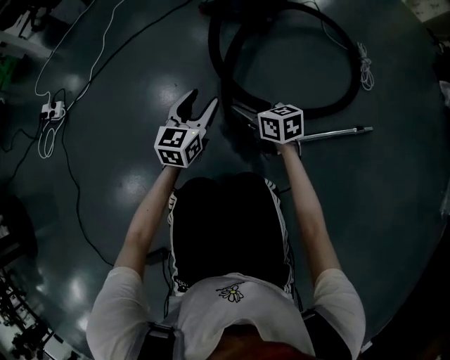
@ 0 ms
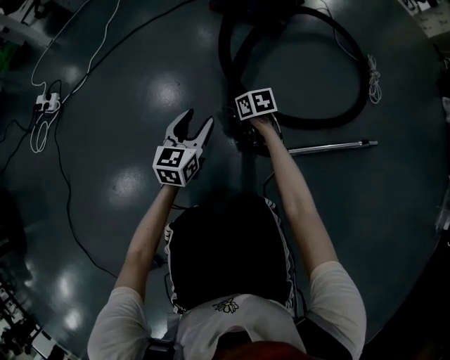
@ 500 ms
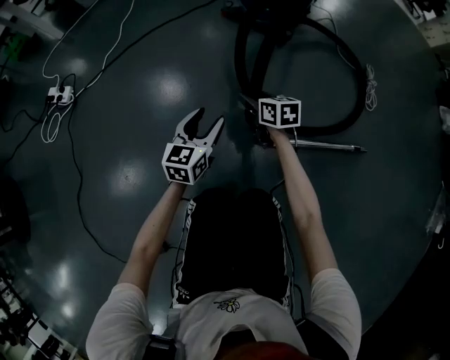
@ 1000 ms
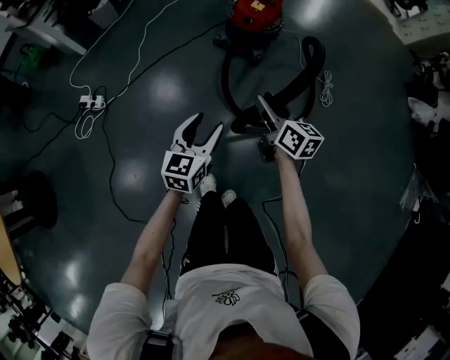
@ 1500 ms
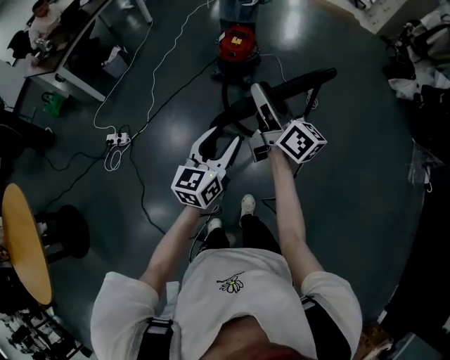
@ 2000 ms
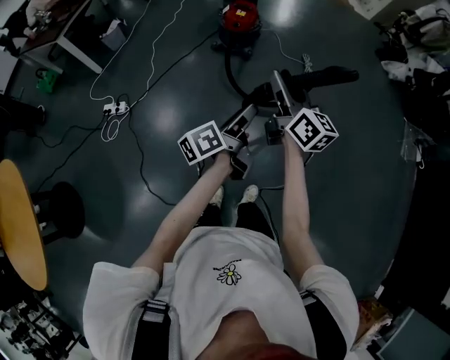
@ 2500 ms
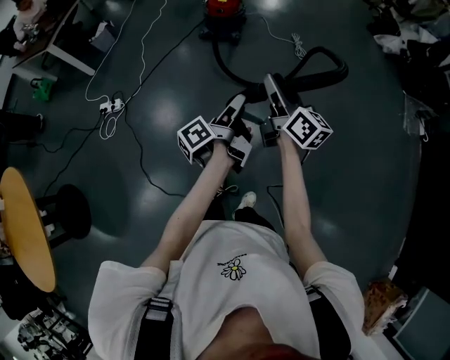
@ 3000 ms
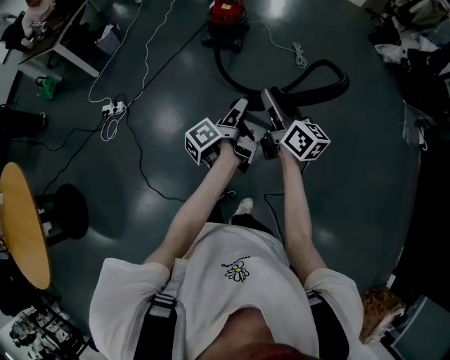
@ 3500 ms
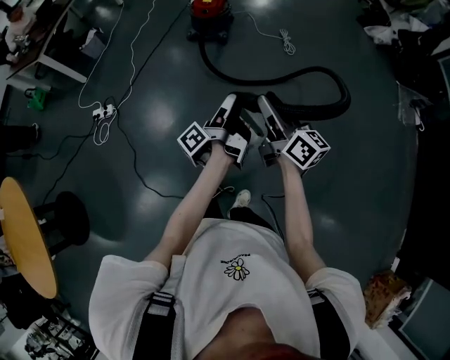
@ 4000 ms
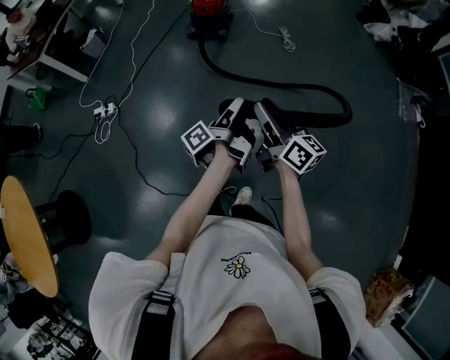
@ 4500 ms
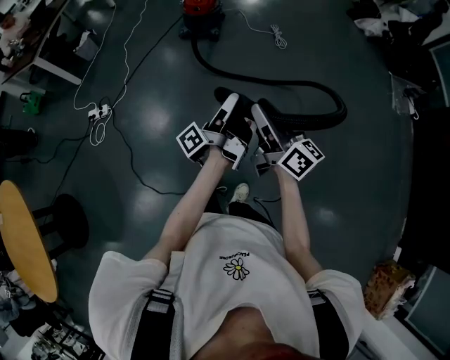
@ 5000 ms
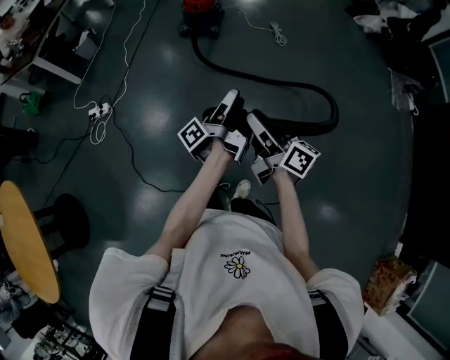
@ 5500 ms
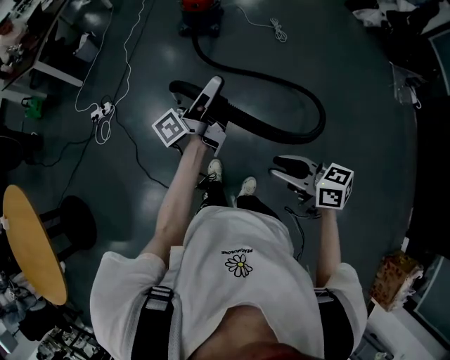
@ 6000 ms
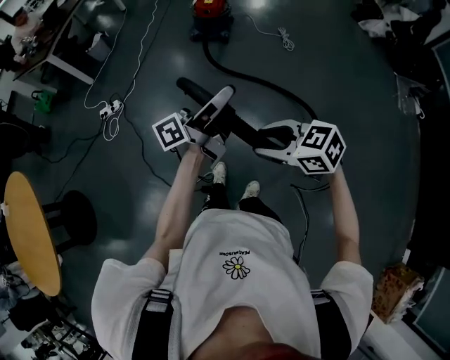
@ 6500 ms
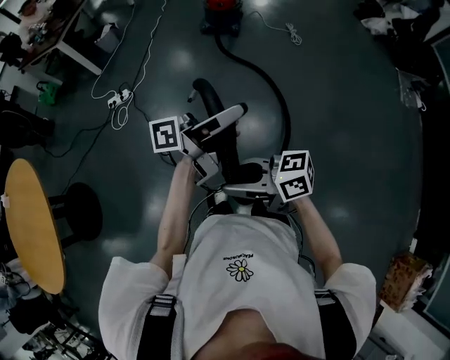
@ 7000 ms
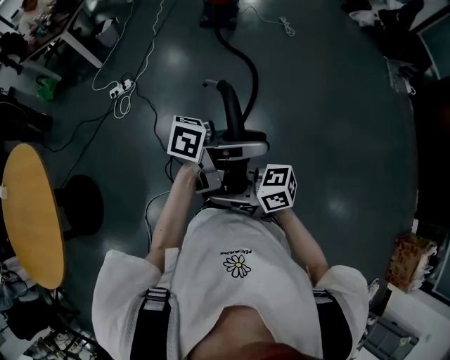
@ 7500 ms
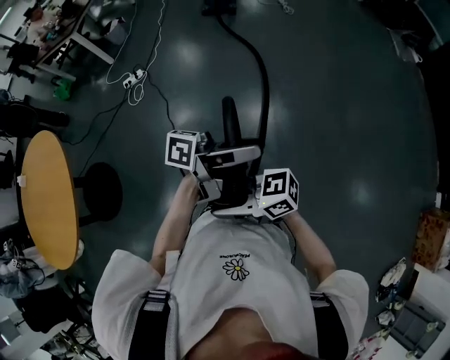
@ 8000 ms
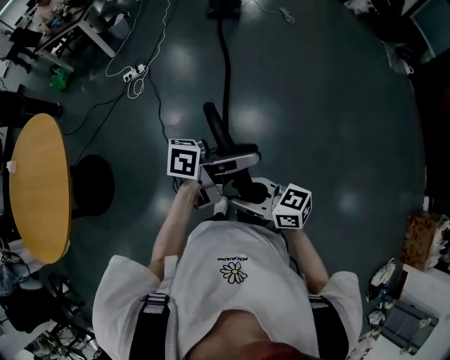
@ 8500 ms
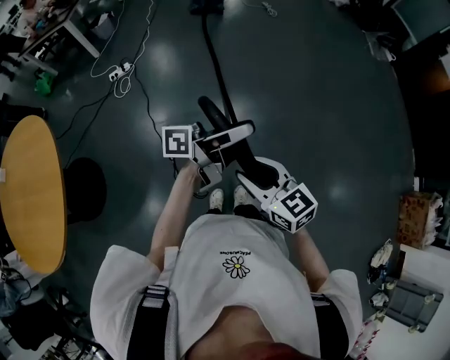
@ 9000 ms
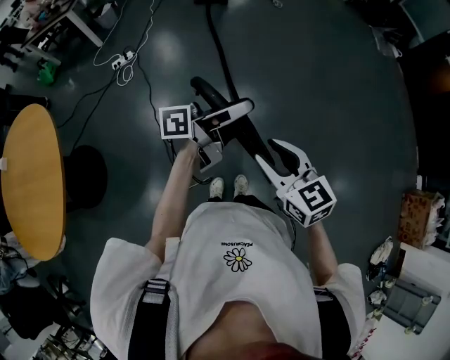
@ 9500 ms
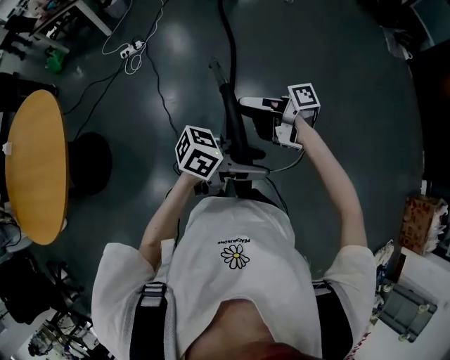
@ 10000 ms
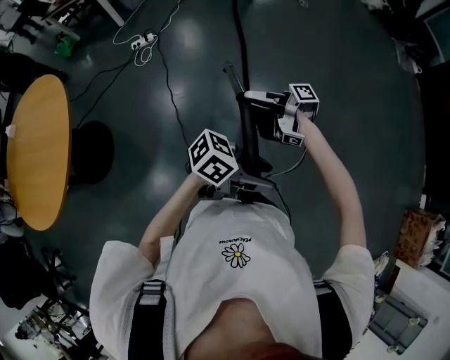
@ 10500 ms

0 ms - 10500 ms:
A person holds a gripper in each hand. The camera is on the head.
0 ms - 2000 ms: The grippers both shift upward by roughly 80 cm. The right gripper tips its fingers upward by approximately 40 degrees.
2000 ms - 4000 ms: The left gripper is displaced backward by roughly 20 cm, and rotates around the line of its fingers by approximately 90 degrees, counterclockwise from behind, while the right gripper shifts roughly 30 cm backward.
4000 ms - 6500 ms: The right gripper shifts roughly 25 cm backward and to the left, and angles its fingers downward, by approximately 40 degrees; the left gripper shifts about 20 cm upward and backward, and turns by some 40 degrees.
6500 ms - 8500 ms: The pair of grippers is taken roughly 70 cm. The left gripper changes its angle by roughly 40 degrees. Meanwhile the right gripper swivels approximately 30 degrees.
8500 ms - 10500 ms: The left gripper changes place by roughly 20 cm, and changes its angle by roughly 30 degrees, while the right gripper ends up roughly 15 cm from where it was, and twists about 70 degrees clockwise, seen from behind.

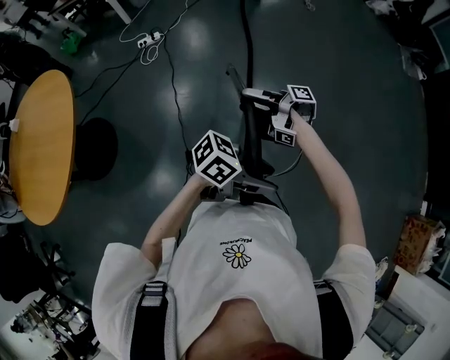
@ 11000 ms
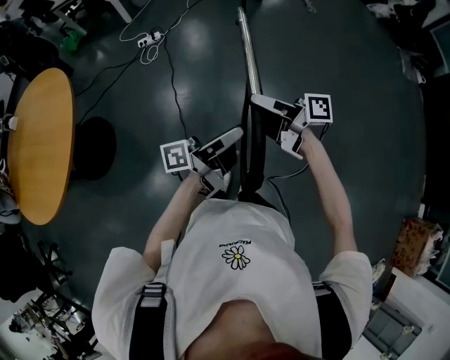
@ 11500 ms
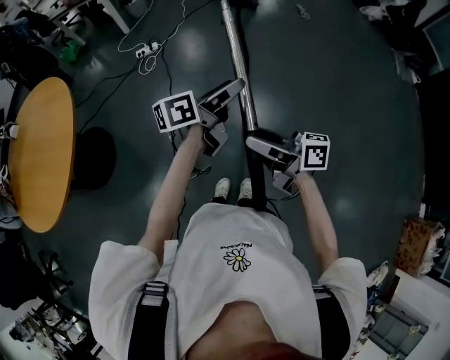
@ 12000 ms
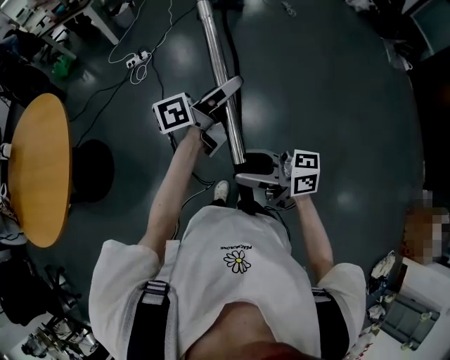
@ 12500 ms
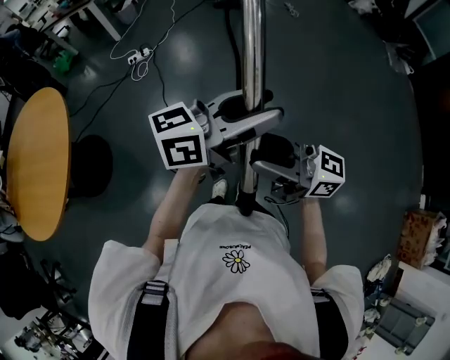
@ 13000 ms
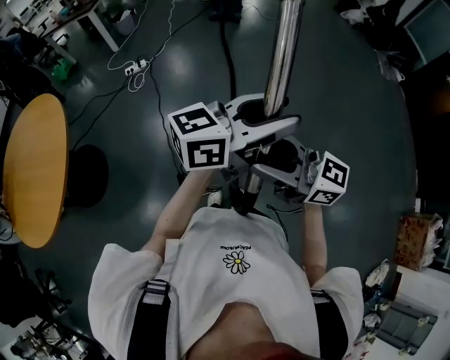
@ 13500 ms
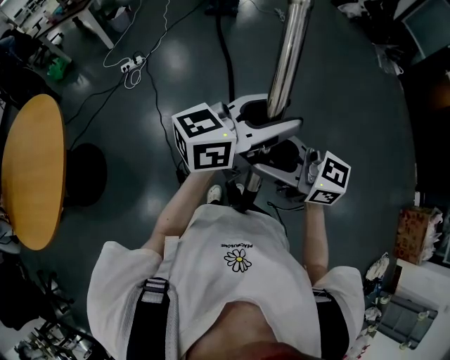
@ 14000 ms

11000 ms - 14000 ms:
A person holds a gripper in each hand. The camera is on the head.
11000 ms - 12500 ms: The right gripper ends up some 20 cm from where it was, and twists approximately 70 degrees counterclockwise, seen from behind. The left gripper changes place by about 30 cm, and swivels some 60 degrees.
12500 ms - 14000 ms: The left gripper ends up some 20 cm from where it was, and changes its angle by about 40 degrees. The right gripper travels upward by some 10 cm, and rotates about 30 degrees.

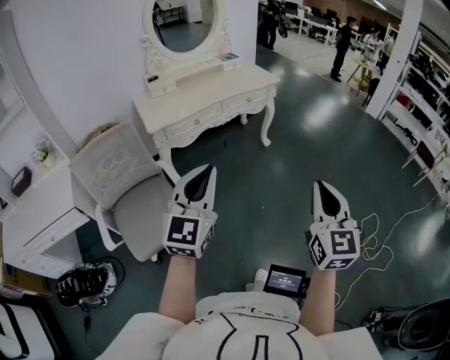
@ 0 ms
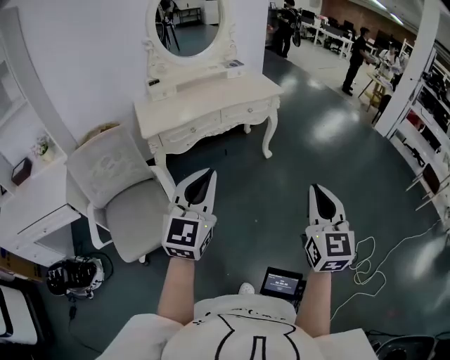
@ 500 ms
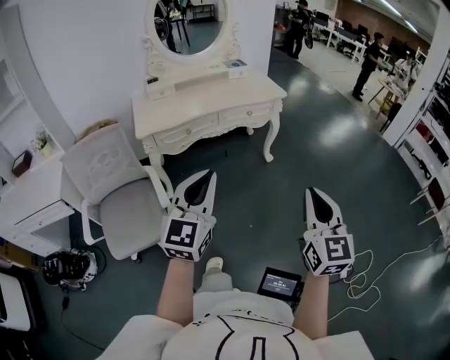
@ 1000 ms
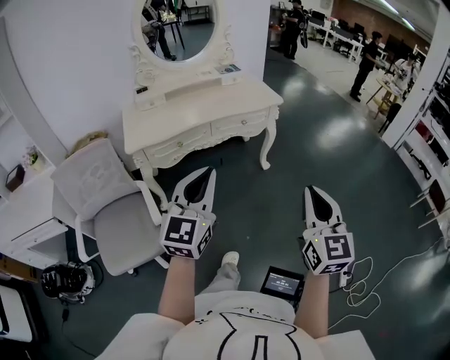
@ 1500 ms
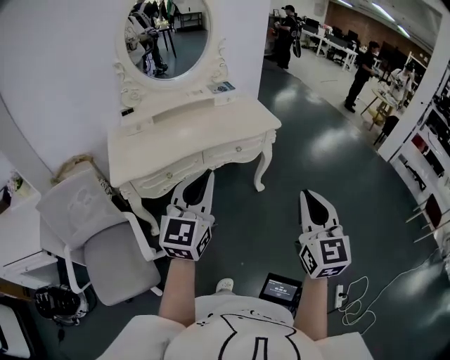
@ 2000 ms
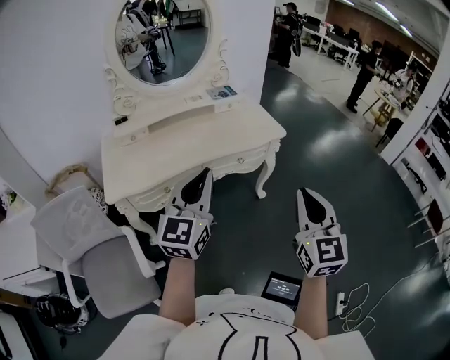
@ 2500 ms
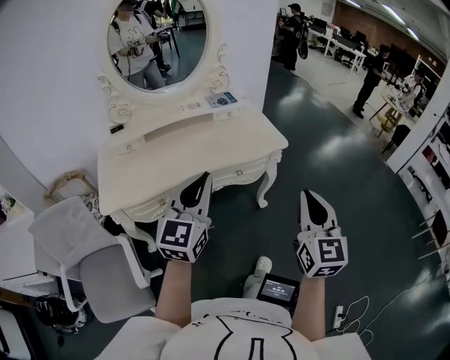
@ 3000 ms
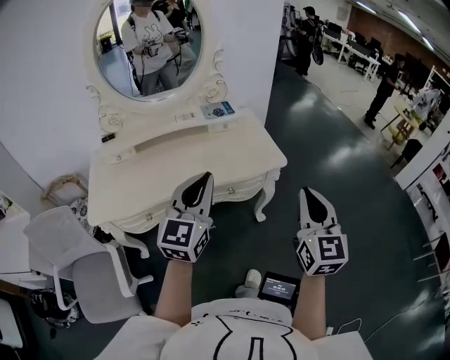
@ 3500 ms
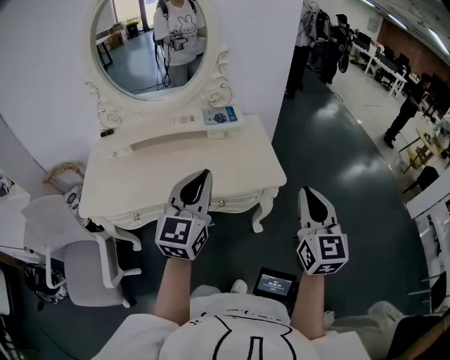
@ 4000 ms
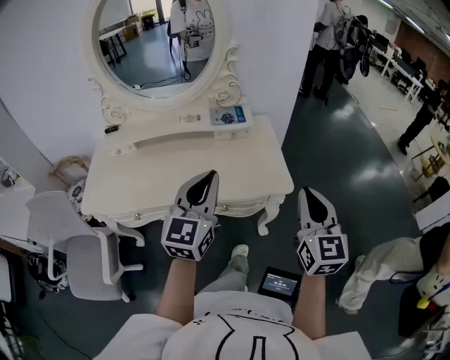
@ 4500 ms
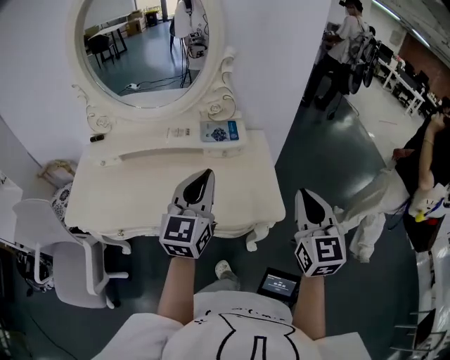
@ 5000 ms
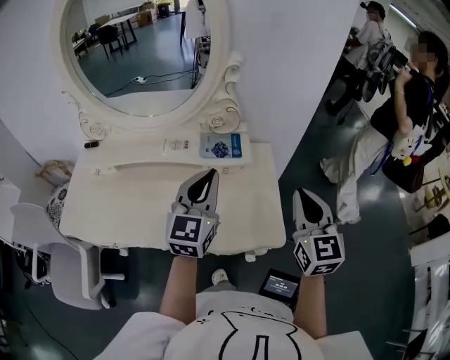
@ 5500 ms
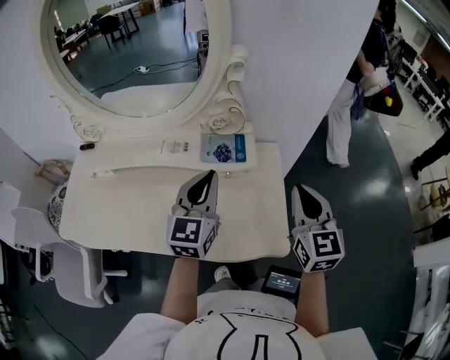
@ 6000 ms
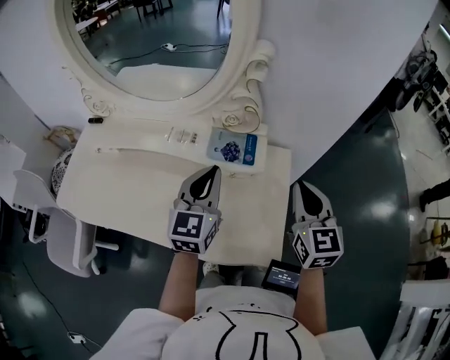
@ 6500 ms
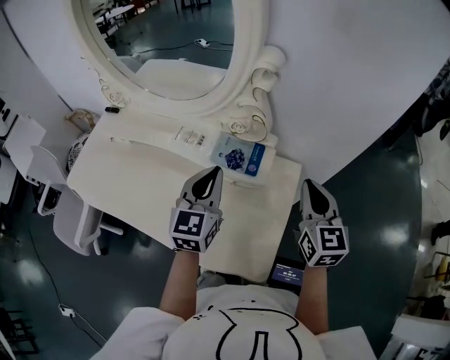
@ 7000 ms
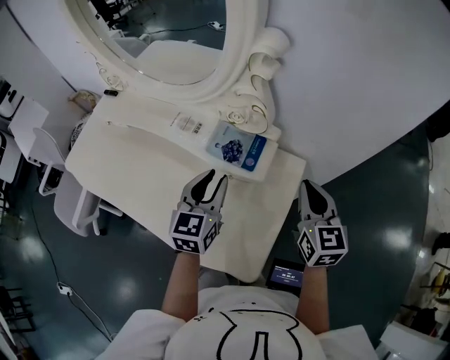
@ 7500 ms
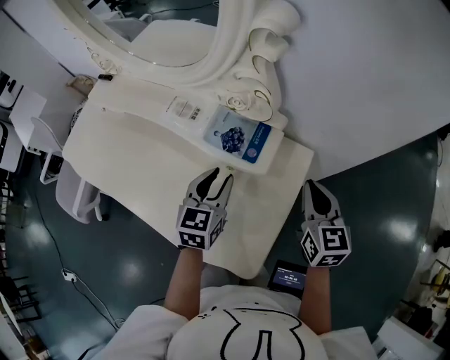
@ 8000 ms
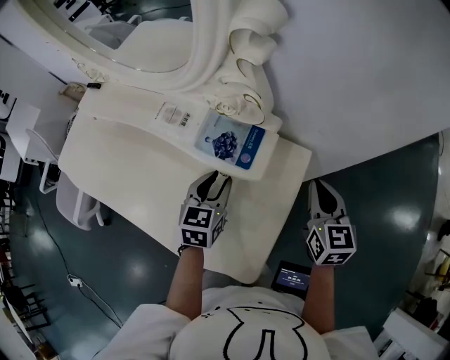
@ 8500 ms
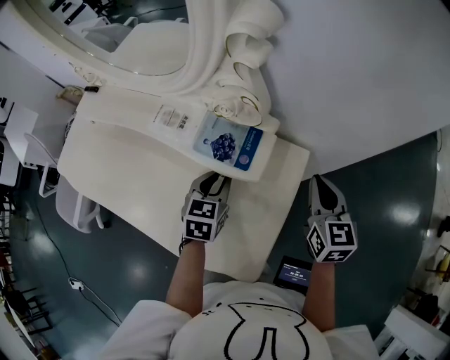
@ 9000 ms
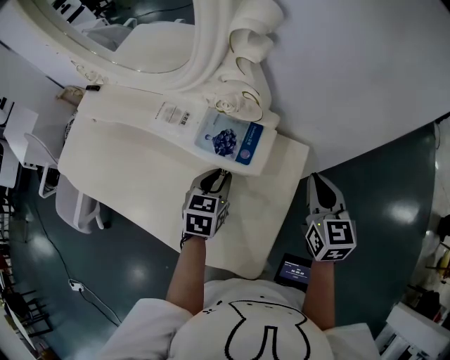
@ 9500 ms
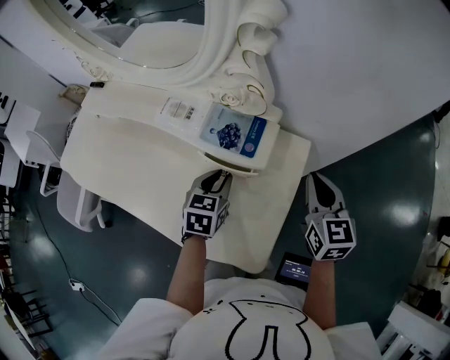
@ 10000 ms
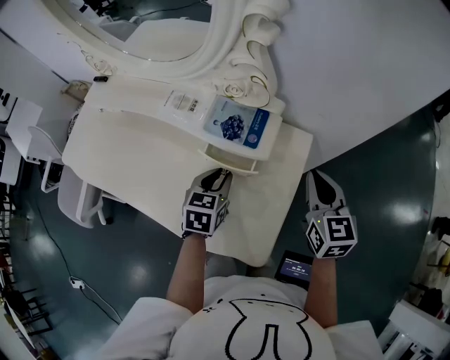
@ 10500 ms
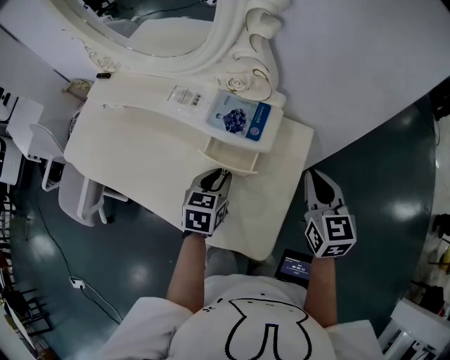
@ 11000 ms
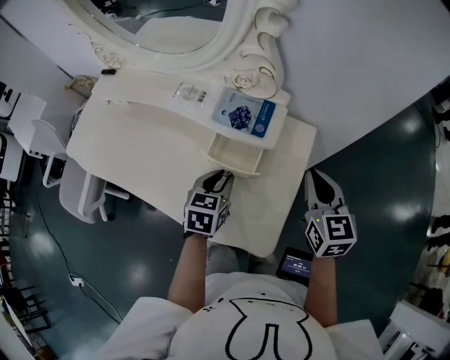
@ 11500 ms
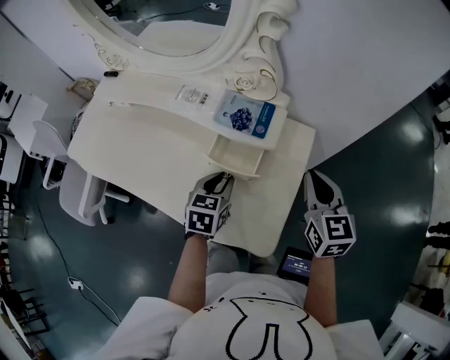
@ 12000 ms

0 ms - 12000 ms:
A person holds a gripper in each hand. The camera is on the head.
0 ms - 2000 ms: Both grippers travel together forward, some 35 cm.
2000 ms - 4000 ms: Both grippers travel together forward, roughly 40 cm.
4000 ms - 6000 ms: The grippers both shift forward by some 30 cm.
6000 ms - 8000 ms: The right gripper heads forward, downward and to the right, covering some 20 cm, and rotates some 30 degrees, while the left gripper moves downward, about 15 cm, swivels approximately 30 degrees, and opens.
8000 ms - 10000 ms: The left gripper moves approximately 5 cm.
10000 ms - 12000 ms: The grippers both shift backward by about 5 cm.

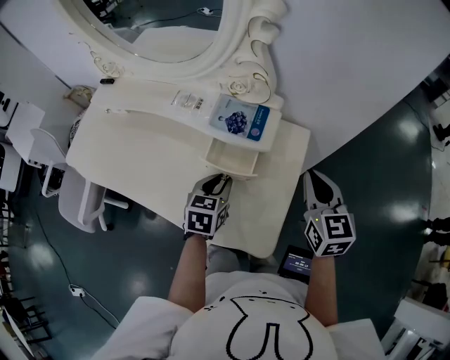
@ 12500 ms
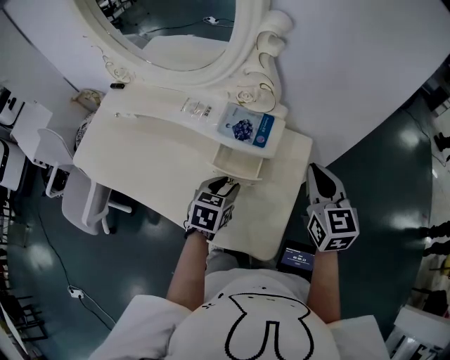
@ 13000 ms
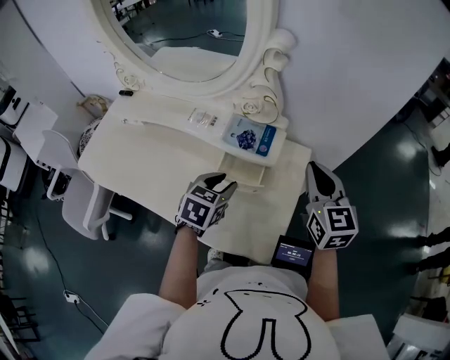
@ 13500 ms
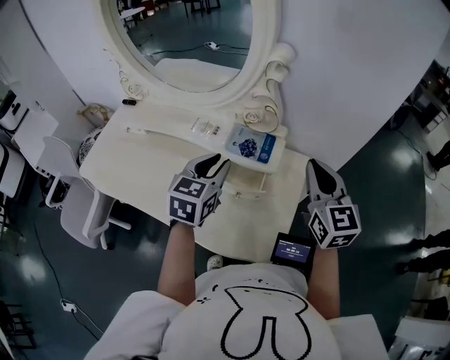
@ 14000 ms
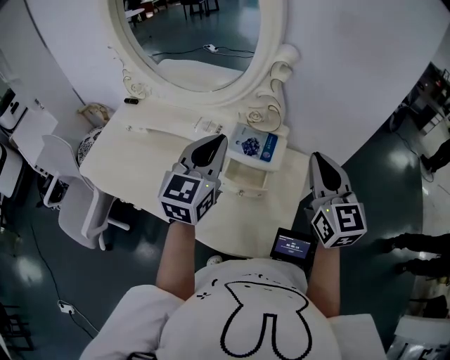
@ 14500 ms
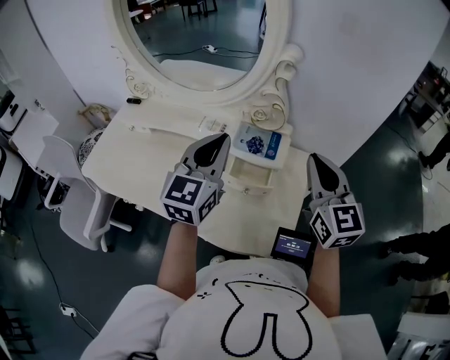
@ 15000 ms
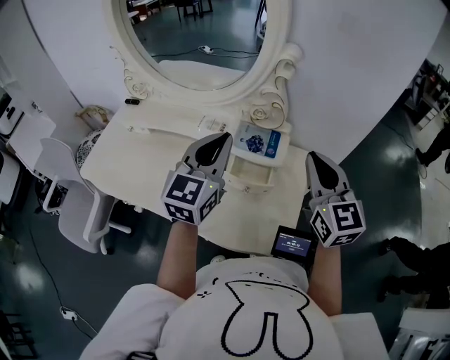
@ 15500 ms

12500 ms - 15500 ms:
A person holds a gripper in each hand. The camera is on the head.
12500 ms - 14000 ms: The right gripper goes about 10 cm upward, while the left gripper travels upward by some 20 cm.
14000 ms - 15500 ms: The right gripper moves approximately 5 cm. Meanwhile the left gripper travels upward by some 10 cm, turns by about 20 degrees, and closes up.
